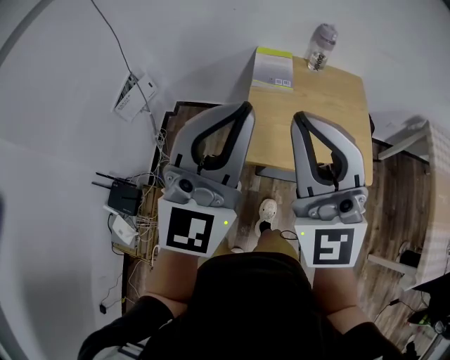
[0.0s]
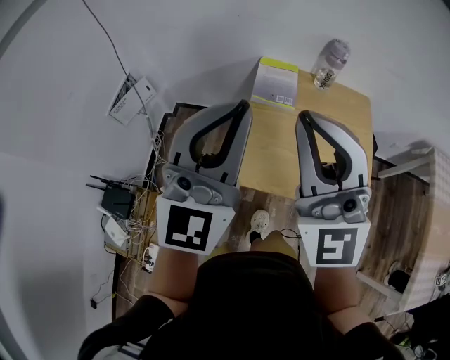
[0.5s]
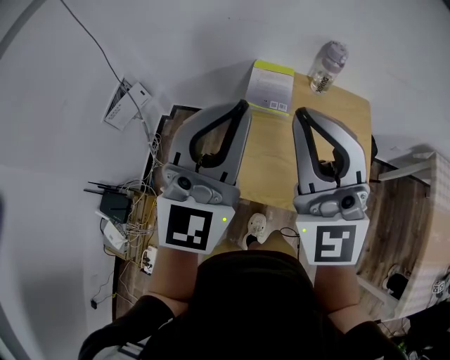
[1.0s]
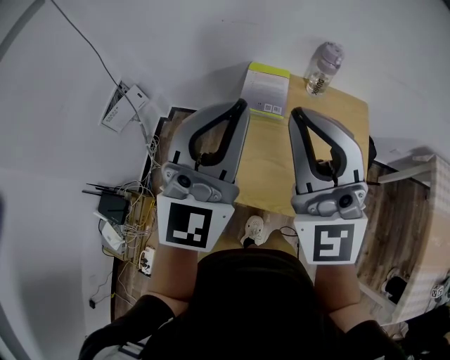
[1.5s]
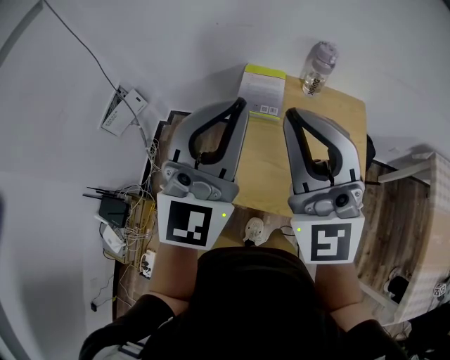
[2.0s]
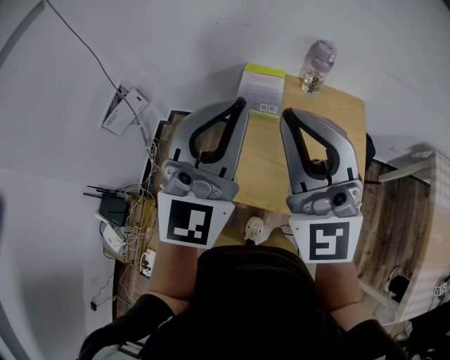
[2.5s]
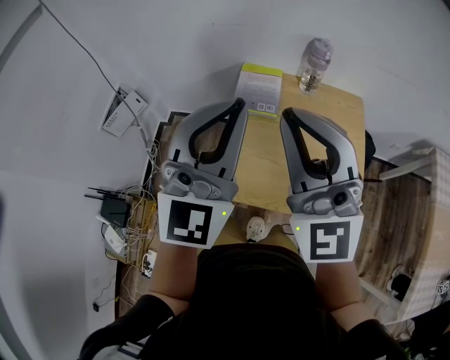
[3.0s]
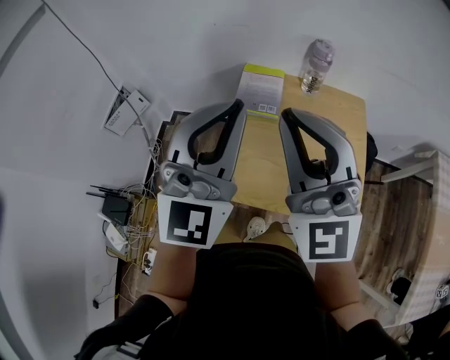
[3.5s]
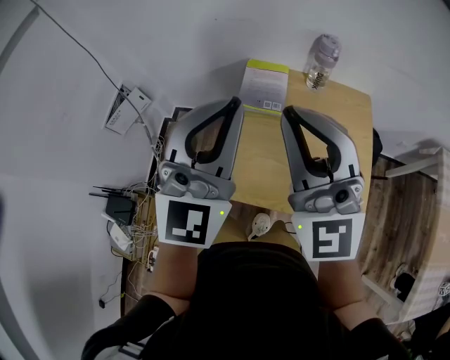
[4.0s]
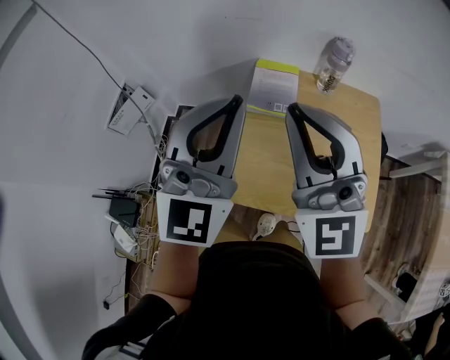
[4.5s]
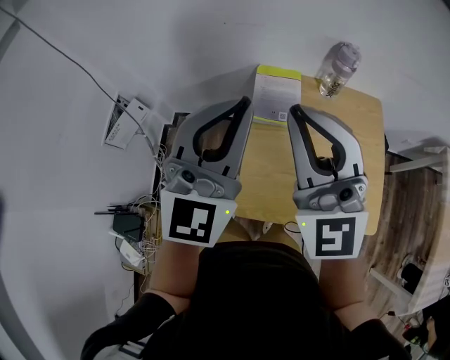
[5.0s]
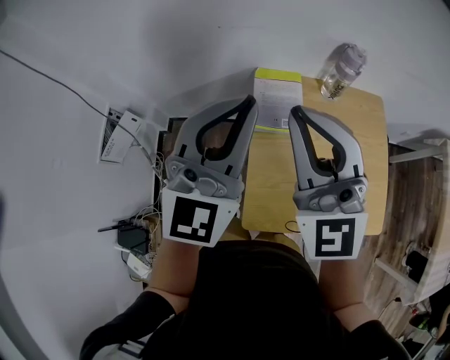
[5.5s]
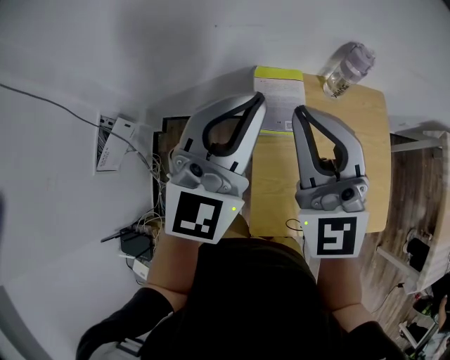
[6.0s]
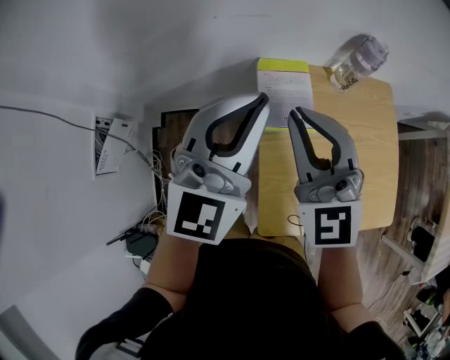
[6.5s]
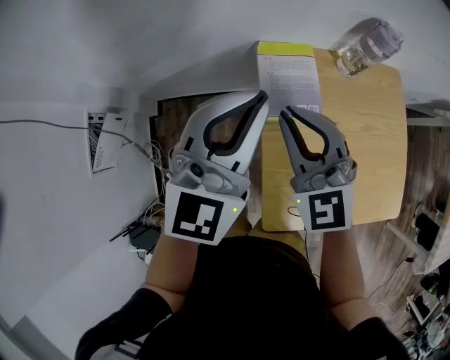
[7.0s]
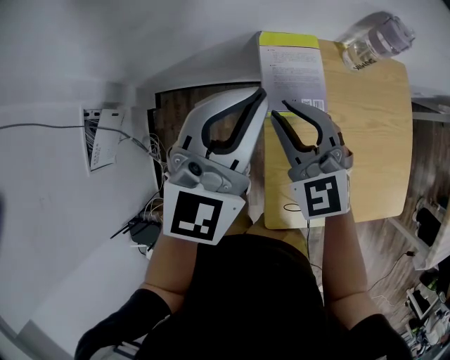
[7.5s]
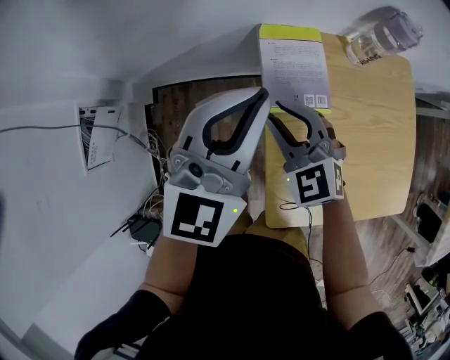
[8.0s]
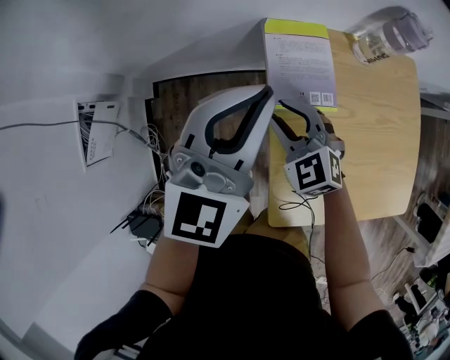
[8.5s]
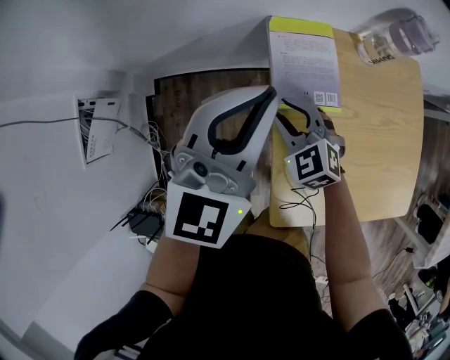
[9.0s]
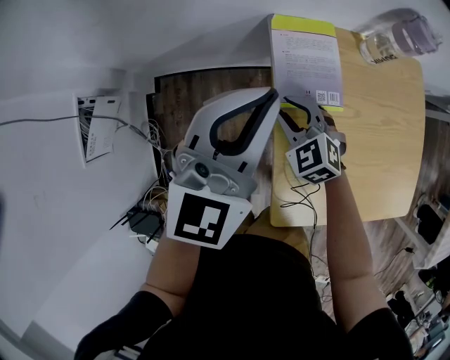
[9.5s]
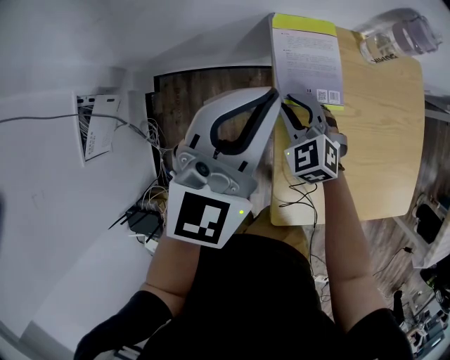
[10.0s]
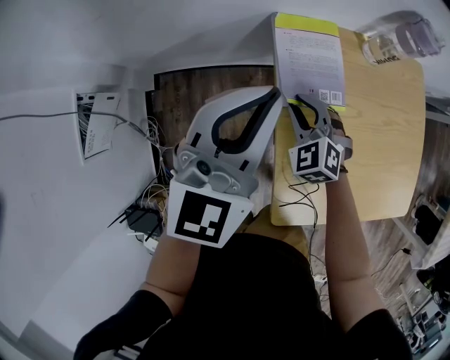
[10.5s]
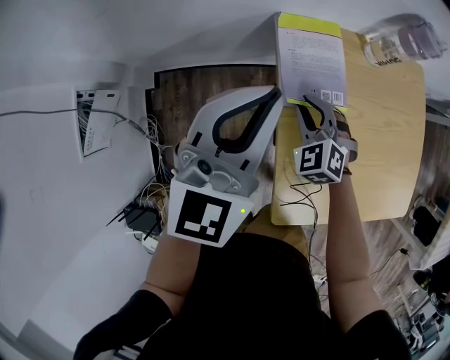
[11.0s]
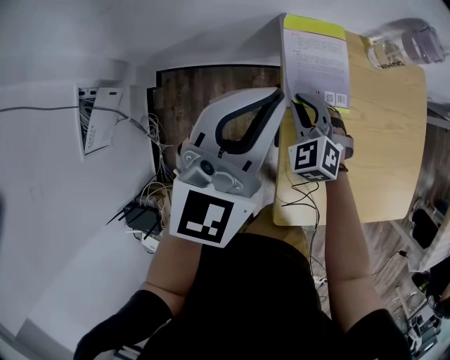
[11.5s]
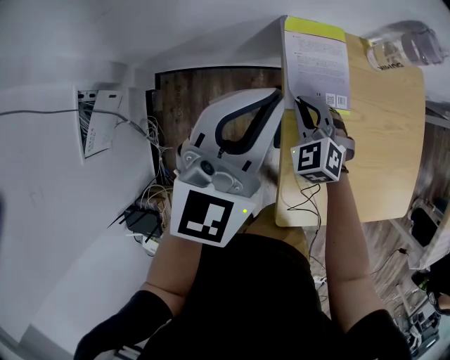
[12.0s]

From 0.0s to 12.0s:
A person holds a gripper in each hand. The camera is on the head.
From 0.0s to 2.0s: Both grippers travel together forward and to the right, roughly 20 cm.
From 2.0s to 4.0s: The grippers make only small movements.
From 4.0s to 6.0s: Both grippers travel together forward and to the left, approximately 20 cm.
From 6.0s to 8.0s: The right gripper goes roughly 30 cm downward, and angles its fingers downward, by some 40 degrees. Meanwhile the left gripper travels downward by roughly 10 cm.
From 8.0s to 10.0s: The right gripper heads downward, covering some 10 cm.
From 10.0s to 12.0s: The grippers stay close to where they were, moving slightly.

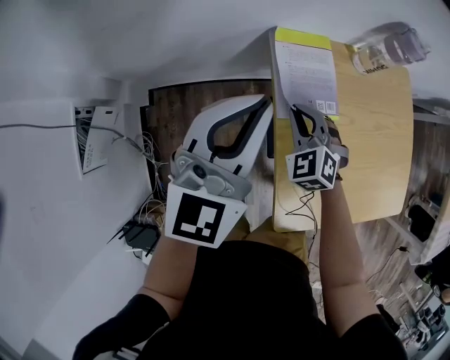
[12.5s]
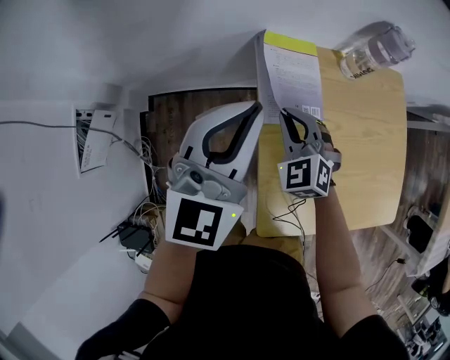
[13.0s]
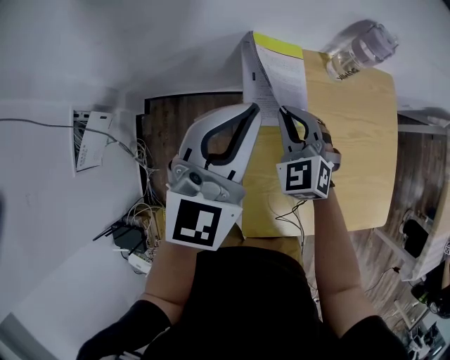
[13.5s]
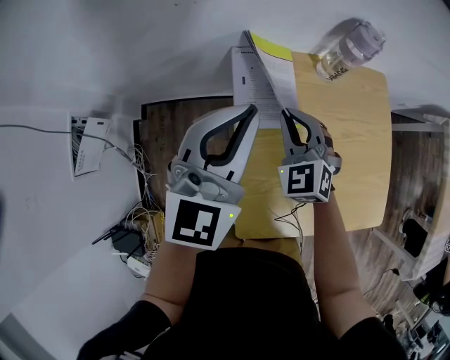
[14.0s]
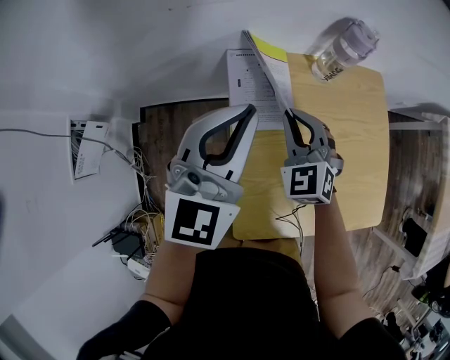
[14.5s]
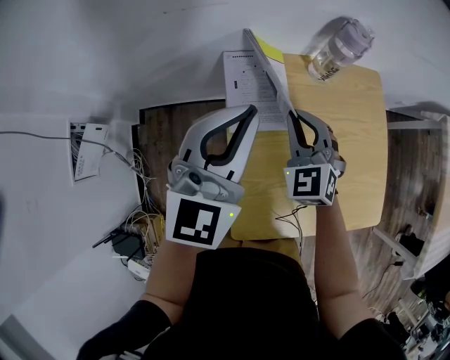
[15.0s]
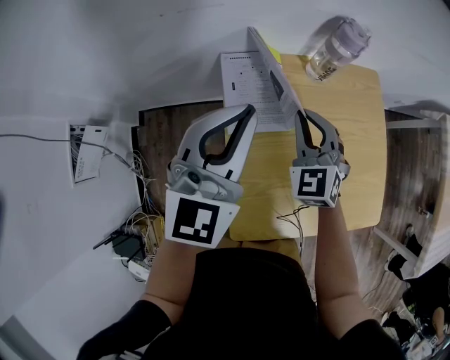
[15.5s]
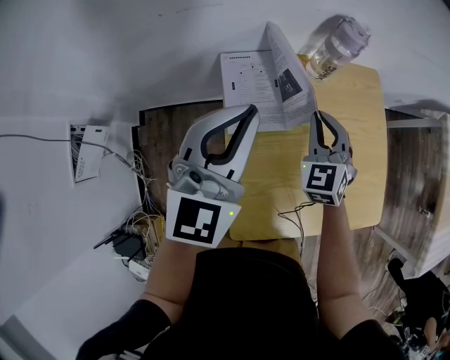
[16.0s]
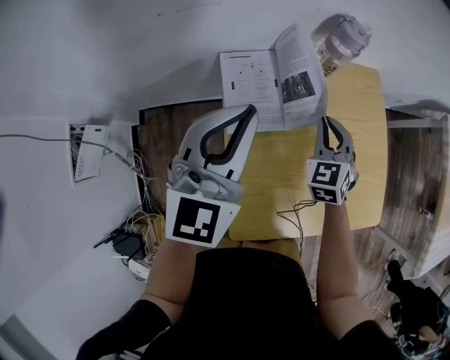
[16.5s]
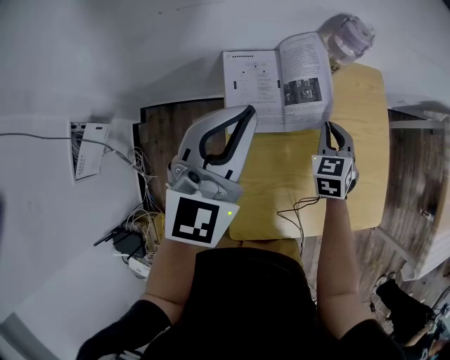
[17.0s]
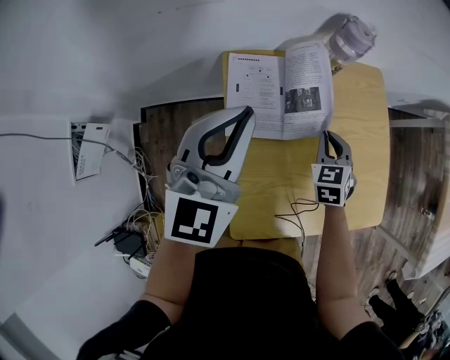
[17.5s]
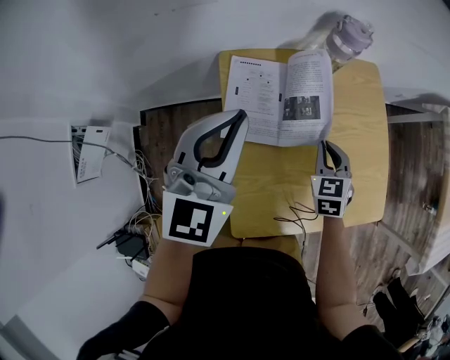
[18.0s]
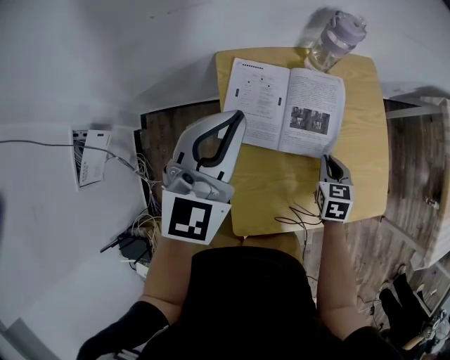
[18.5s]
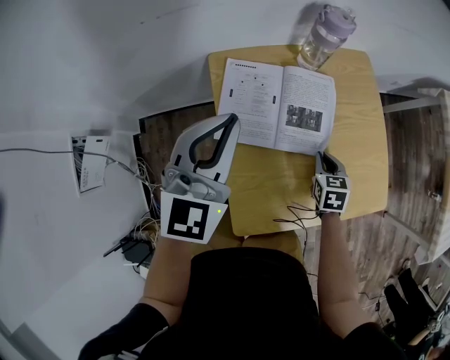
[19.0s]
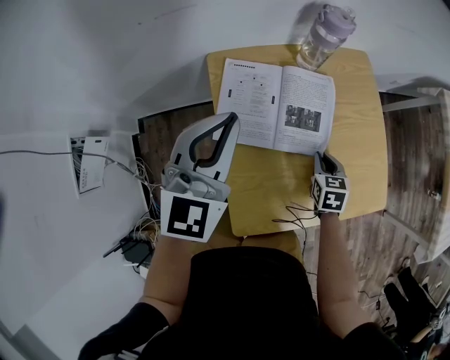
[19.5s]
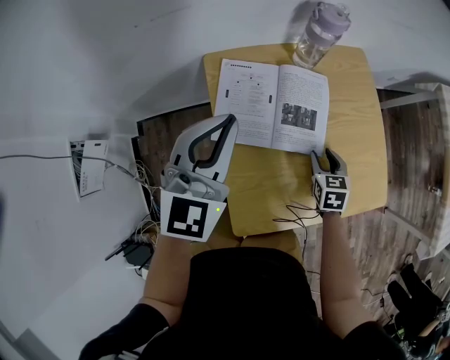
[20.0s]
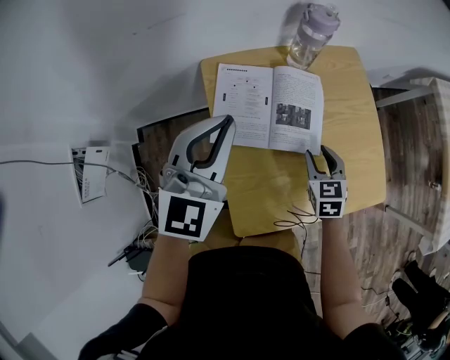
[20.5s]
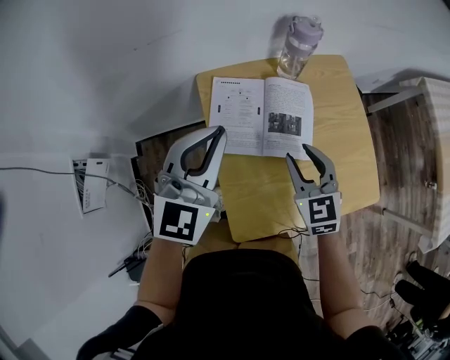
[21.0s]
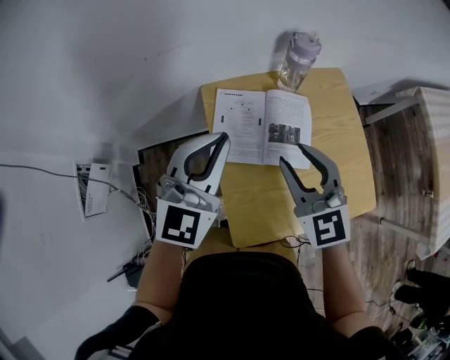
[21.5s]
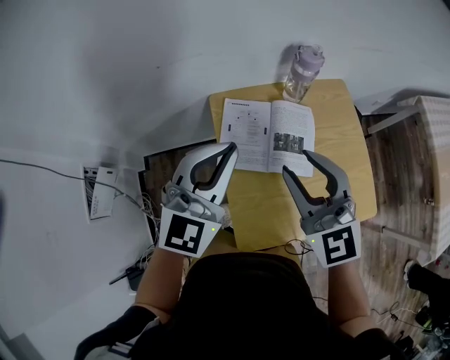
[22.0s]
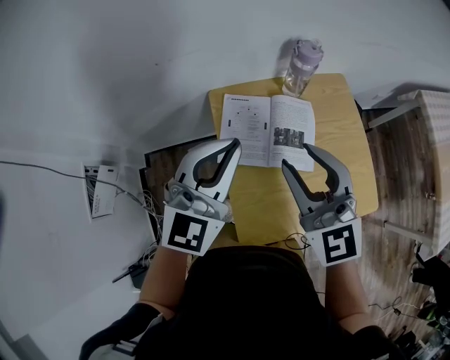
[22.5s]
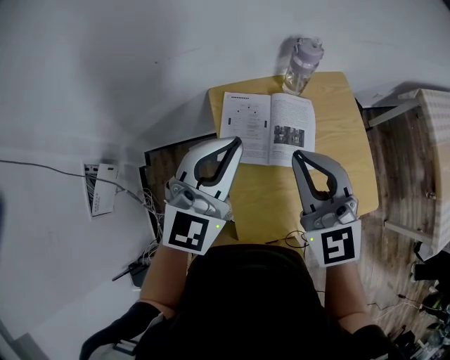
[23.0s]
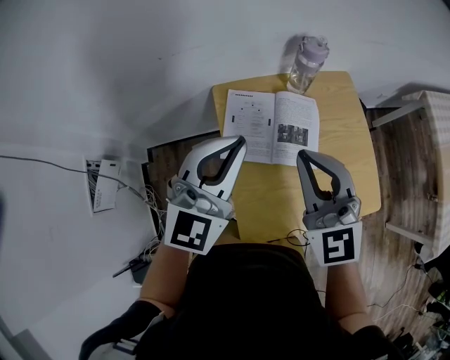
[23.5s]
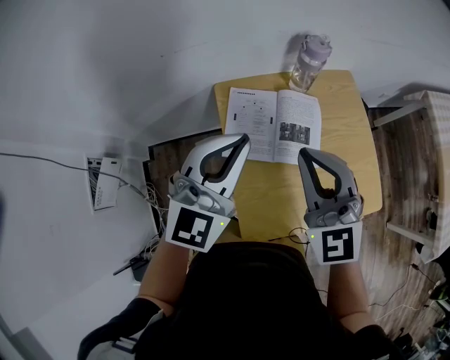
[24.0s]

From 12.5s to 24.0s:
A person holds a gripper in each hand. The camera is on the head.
From 12.5s to 14.5s: The right gripper travels to the right and upward by some 15 cm. The left gripper heads to the right, covering approximately 10 cm.
From 14.5s to 16.5s: The right gripper moves to the right, approximately 10 cm, and turns by about 20 degrees.
From 16.5s to 18.5s: The right gripper travels backward, downward and to the right by roughly 15 cm, and swivels about 30 degrees.
From 18.5s to 20.0s: The right gripper opens its fingers.
From 20.0s to 22.0s: The right gripper goes approximately 35 cm upward and to the left, and angles its fingers upward, by approximately 40 degrees. Meanwhile the left gripper travels upward by some 10 cm.
From 22.0s to 24.0s: The right gripper closes.

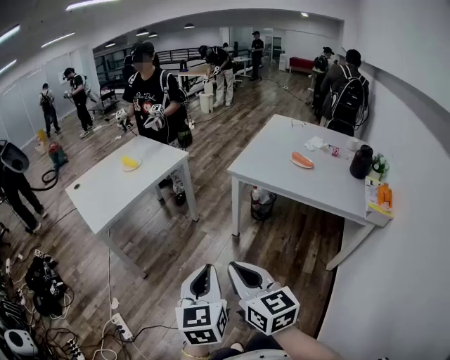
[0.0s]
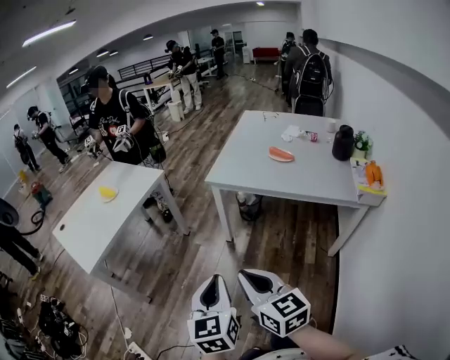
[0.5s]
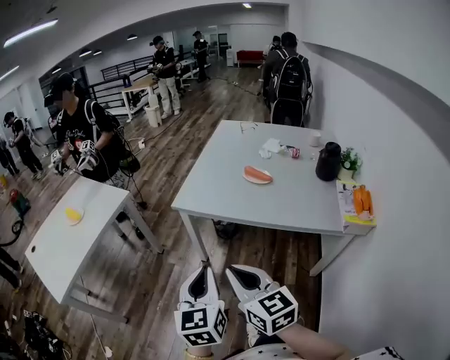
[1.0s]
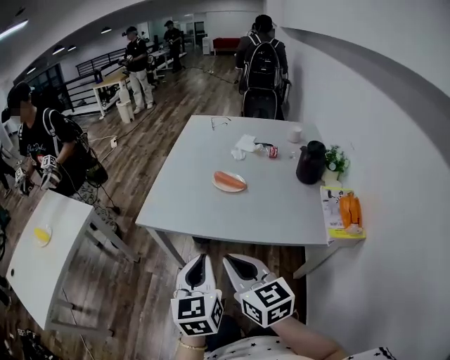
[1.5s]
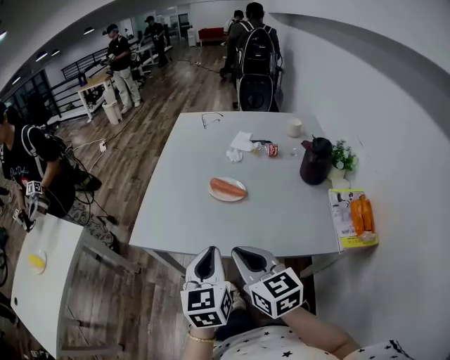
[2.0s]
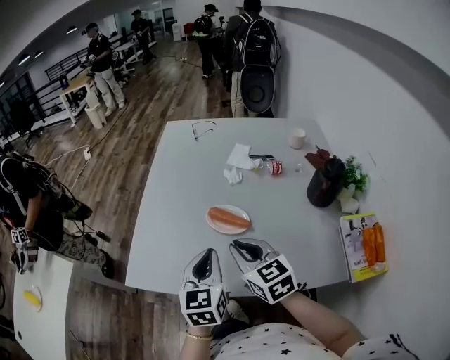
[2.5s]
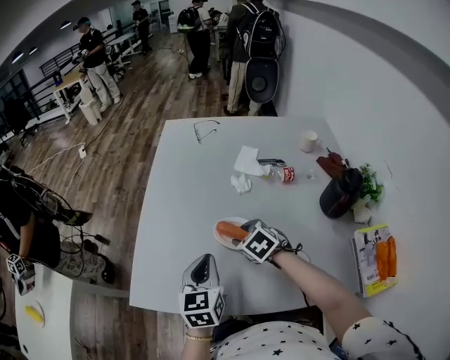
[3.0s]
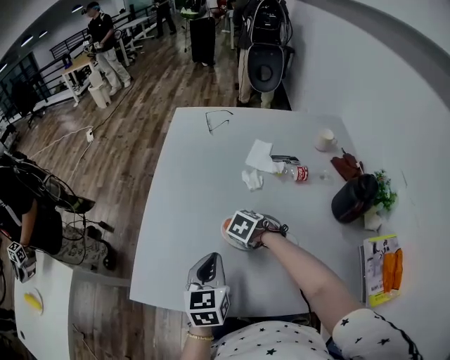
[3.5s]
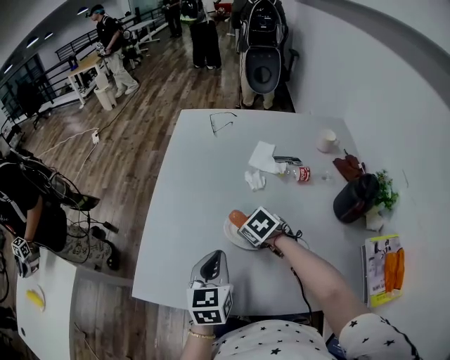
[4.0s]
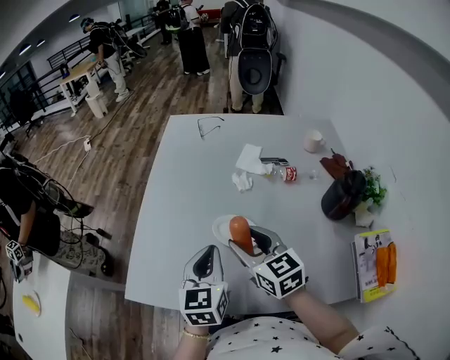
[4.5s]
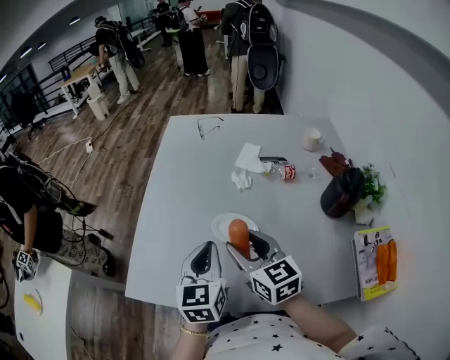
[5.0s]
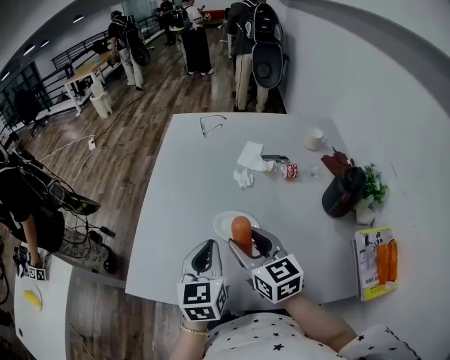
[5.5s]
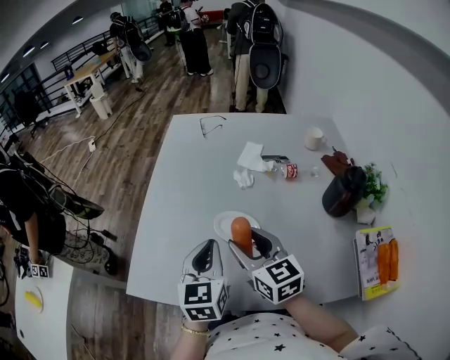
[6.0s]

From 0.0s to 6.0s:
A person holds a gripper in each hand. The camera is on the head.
From 0.0s to 2.0s: Both grippers are carried forward and to the right, approximately 60 cm. The left gripper rotates about 20 degrees; the right gripper swivels approximately 20 degrees.
From 2.0s to 4.0s: The right gripper ends up approximately 40 cm from where it was, tilts its fingers about 50 degrees downward, and opens its fingers. Meanwhile the left gripper shifts by about 25 cm.
From 4.0s to 6.0s: The left gripper changes place by about 5 cm; the right gripper shifts some 20 cm upward and backward, and tips its fingers upward by some 50 degrees.
